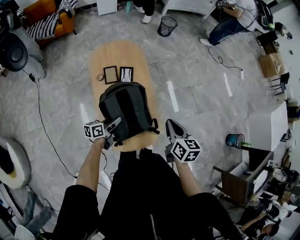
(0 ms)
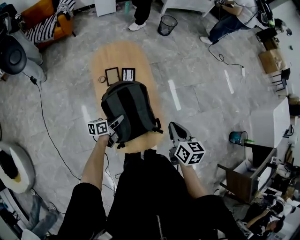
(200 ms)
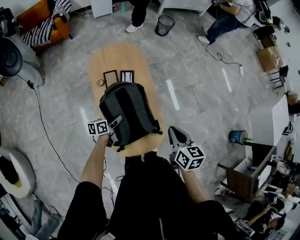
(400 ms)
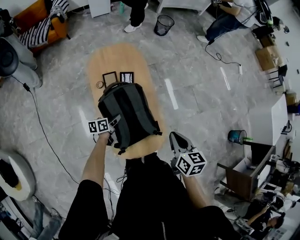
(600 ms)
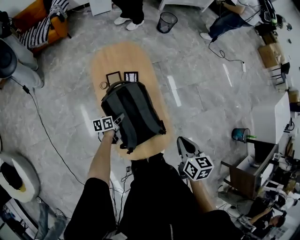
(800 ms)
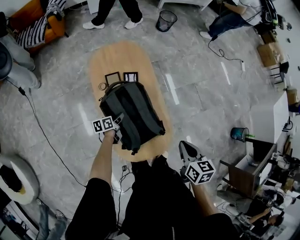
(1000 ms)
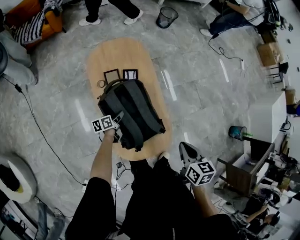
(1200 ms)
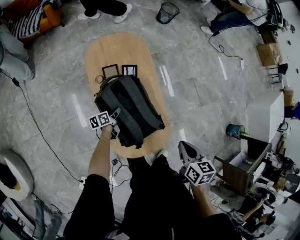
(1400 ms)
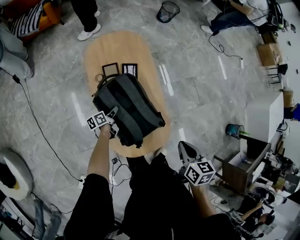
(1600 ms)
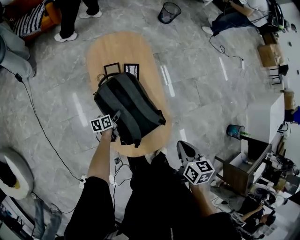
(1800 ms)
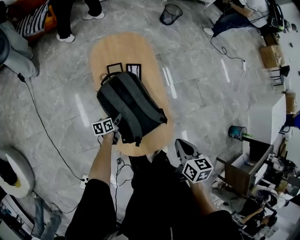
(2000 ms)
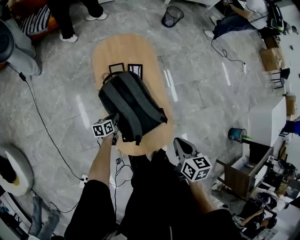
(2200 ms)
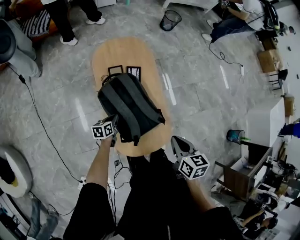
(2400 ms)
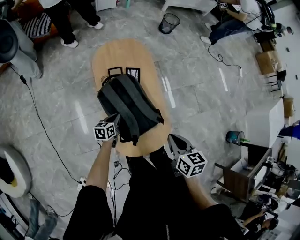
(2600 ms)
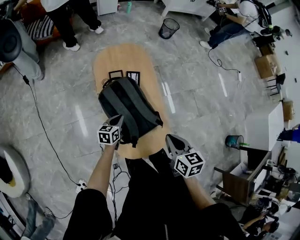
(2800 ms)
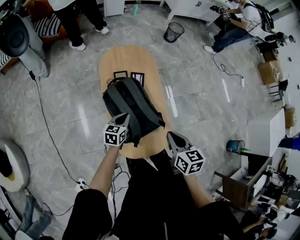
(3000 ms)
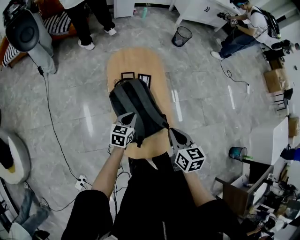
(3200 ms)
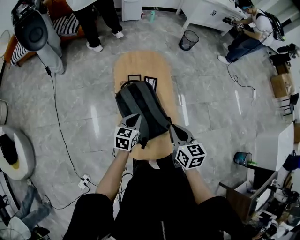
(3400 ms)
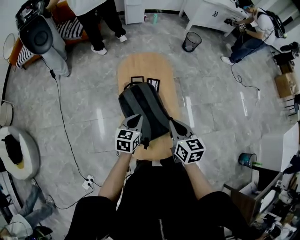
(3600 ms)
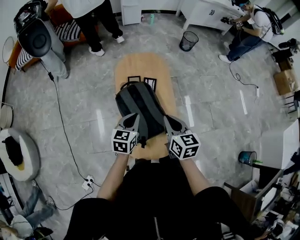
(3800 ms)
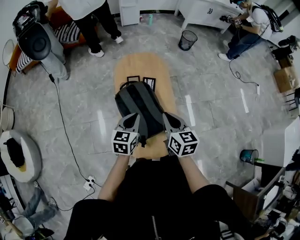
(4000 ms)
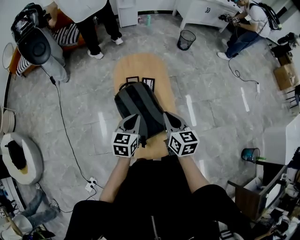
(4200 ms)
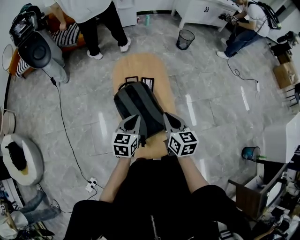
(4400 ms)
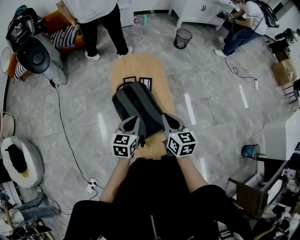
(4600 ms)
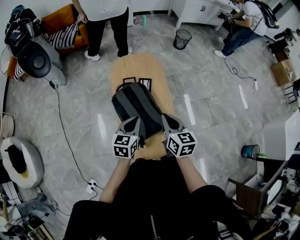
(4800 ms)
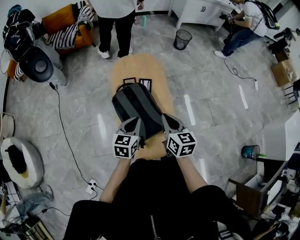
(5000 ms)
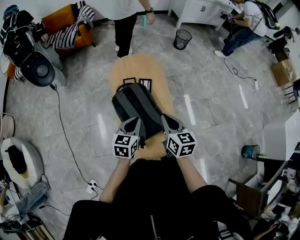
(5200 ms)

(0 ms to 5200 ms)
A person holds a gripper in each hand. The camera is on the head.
0 ms - 1800 ms: The left gripper moves downward, to the left and forward, about 20 cm, and changes its angle by approximately 20 degrees. The right gripper changes place by about 5 cm.
1800 ms - 3400 ms: The right gripper is displaced to the left by roughly 10 cm, and swivels some 20 degrees. The left gripper heads upward, covering roughly 25 cm, swivels some 40 degrees, and closes its fingers.
3400 ms - 5200 ms: The left gripper moves upward, about 5 cm.

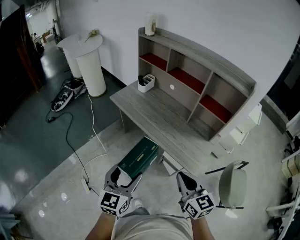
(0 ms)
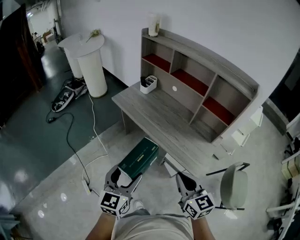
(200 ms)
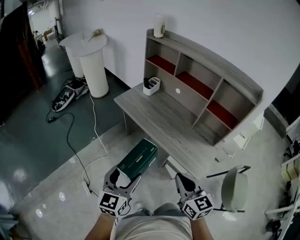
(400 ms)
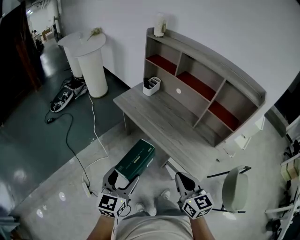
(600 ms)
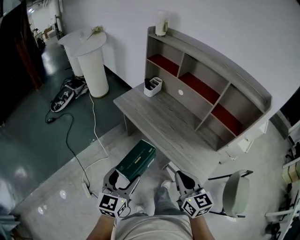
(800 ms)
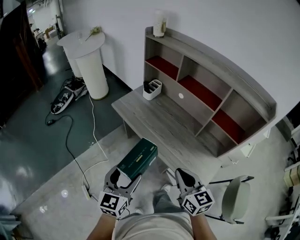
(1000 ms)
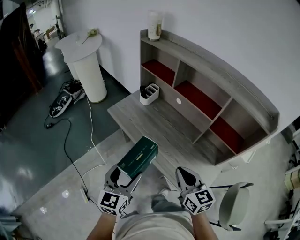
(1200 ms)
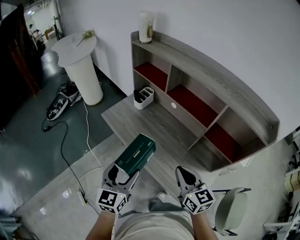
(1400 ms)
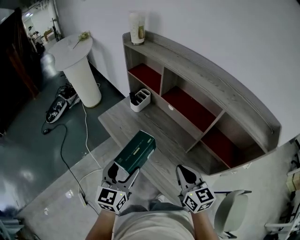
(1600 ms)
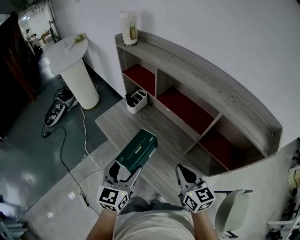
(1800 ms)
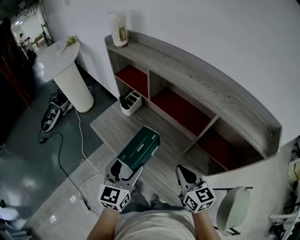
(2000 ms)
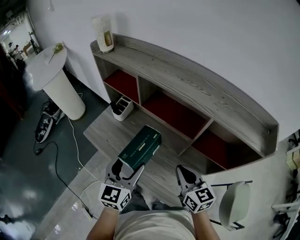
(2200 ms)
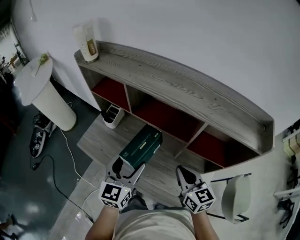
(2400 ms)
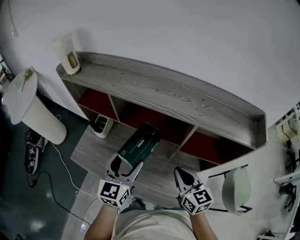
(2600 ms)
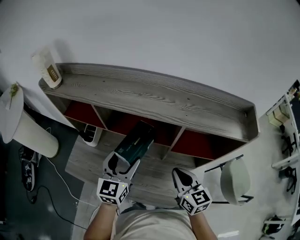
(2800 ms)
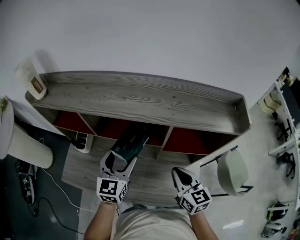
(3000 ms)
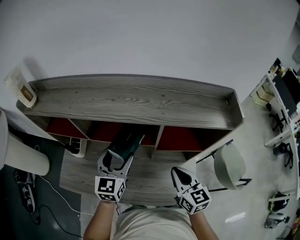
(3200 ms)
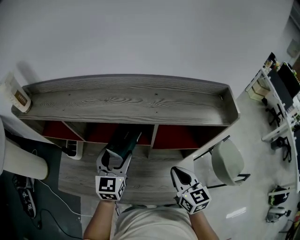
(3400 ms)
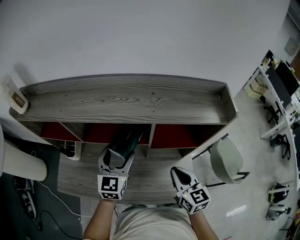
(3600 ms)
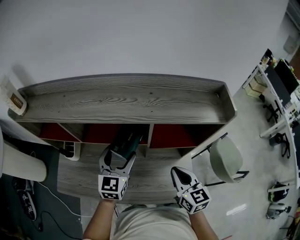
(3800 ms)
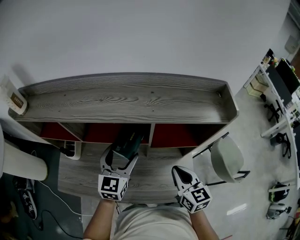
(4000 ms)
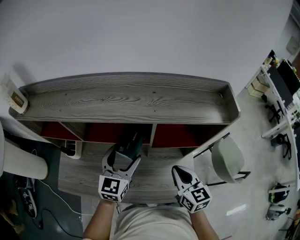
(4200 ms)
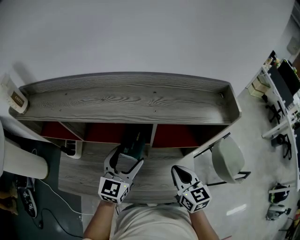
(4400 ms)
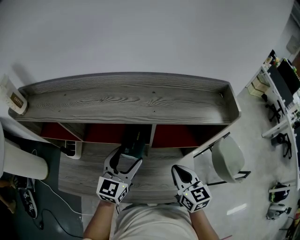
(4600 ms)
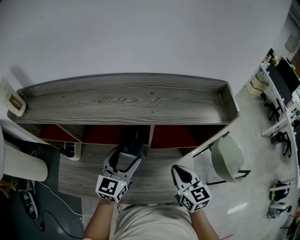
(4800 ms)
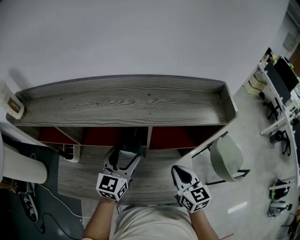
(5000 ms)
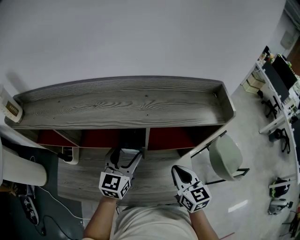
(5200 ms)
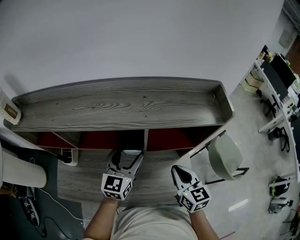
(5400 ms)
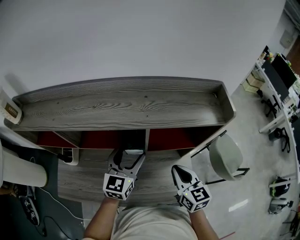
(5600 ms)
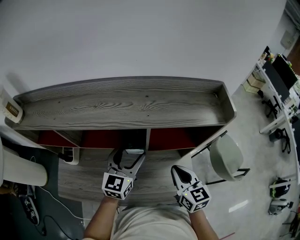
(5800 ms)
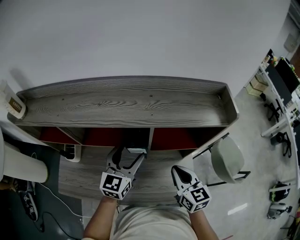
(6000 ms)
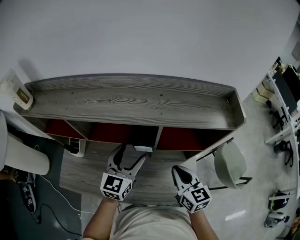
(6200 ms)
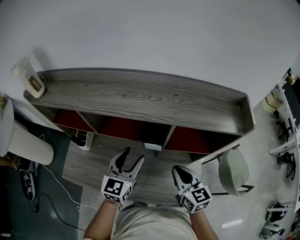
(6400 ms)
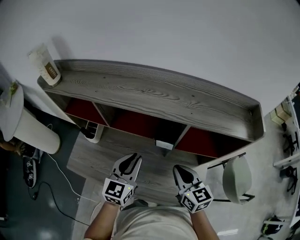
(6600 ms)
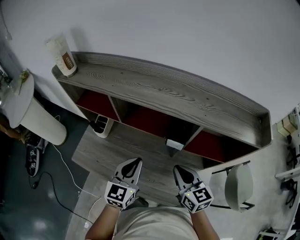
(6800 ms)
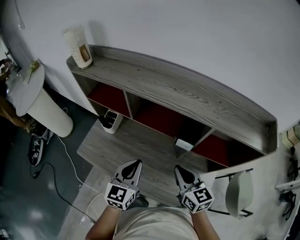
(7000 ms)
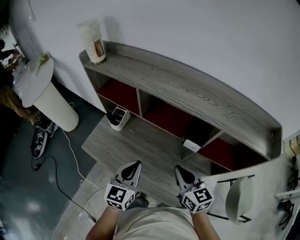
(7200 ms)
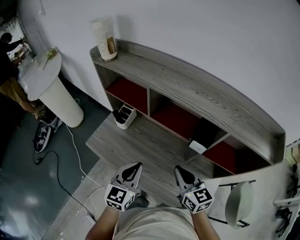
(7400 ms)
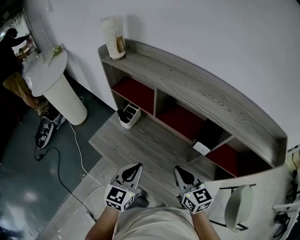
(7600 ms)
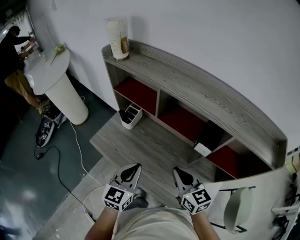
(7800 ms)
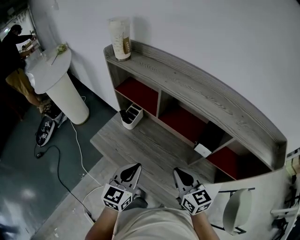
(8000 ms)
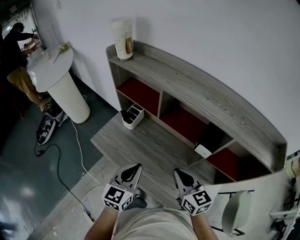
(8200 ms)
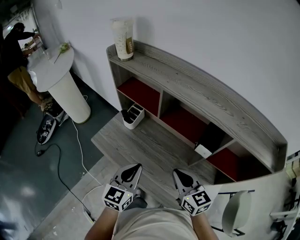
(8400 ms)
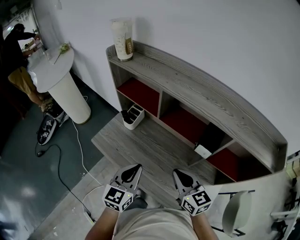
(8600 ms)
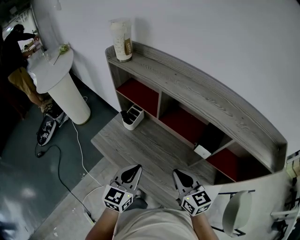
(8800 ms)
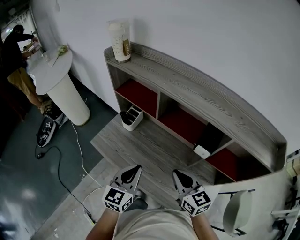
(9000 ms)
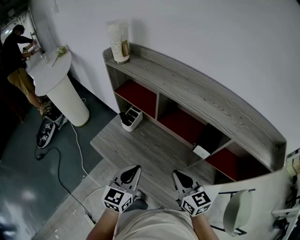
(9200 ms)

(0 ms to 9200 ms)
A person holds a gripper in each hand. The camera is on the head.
0 ms - 1600 ms: Both grippers travel together forward, about 30 cm.
1600 ms - 3000 ms: The left gripper moves roughly 30 cm, and turns by approximately 30 degrees, while the right gripper moves roughly 15 cm, and changes its angle by some 40 degrees.
3000 ms - 4600 ms: The left gripper goes some 5 cm to the right.
4600 ms - 6200 ms: There are only small adjustments of the grippers.
6200 ms - 7600 ms: The right gripper changes place by roughly 20 cm, and turns by roughly 30 degrees. The left gripper ends up some 25 cm from where it was, turns by some 30 degrees, and closes up.
7600 ms - 9200 ms: The grippers move only a little.

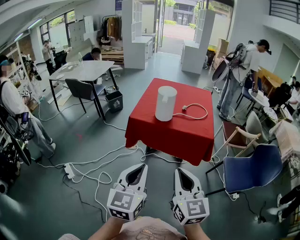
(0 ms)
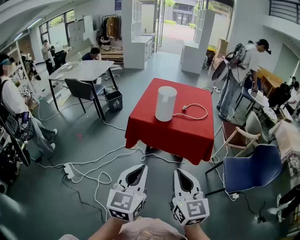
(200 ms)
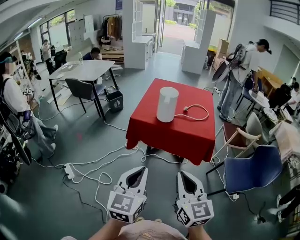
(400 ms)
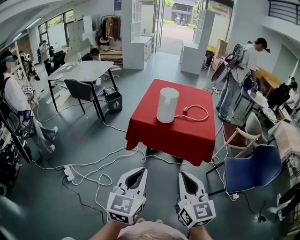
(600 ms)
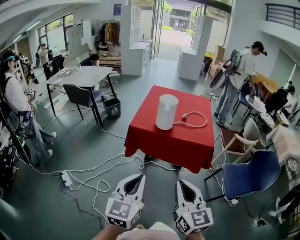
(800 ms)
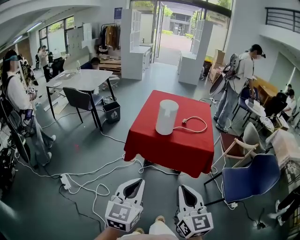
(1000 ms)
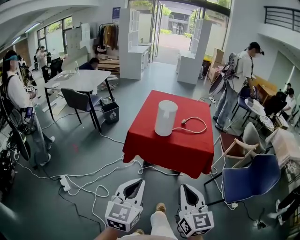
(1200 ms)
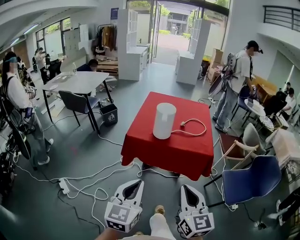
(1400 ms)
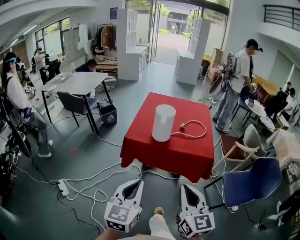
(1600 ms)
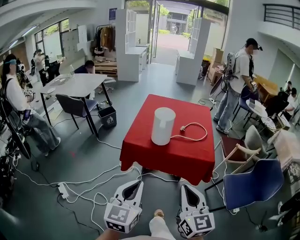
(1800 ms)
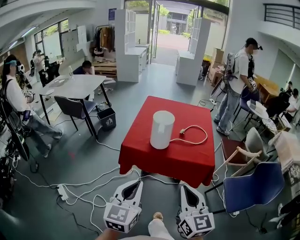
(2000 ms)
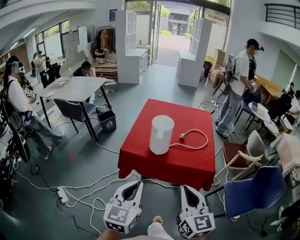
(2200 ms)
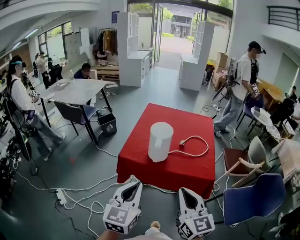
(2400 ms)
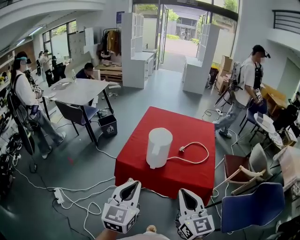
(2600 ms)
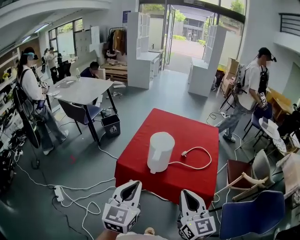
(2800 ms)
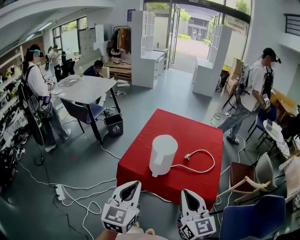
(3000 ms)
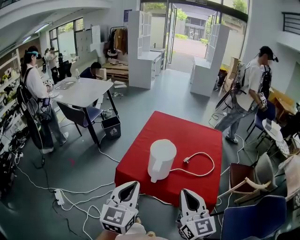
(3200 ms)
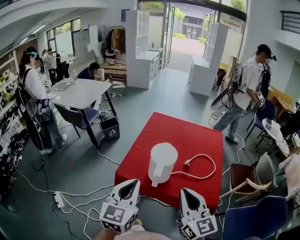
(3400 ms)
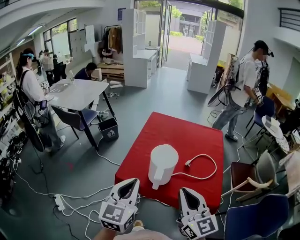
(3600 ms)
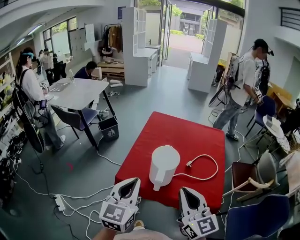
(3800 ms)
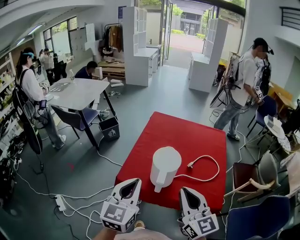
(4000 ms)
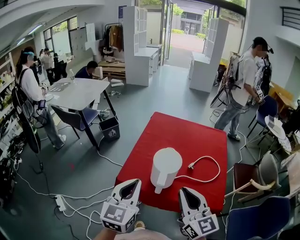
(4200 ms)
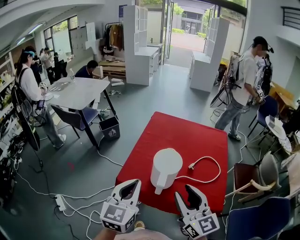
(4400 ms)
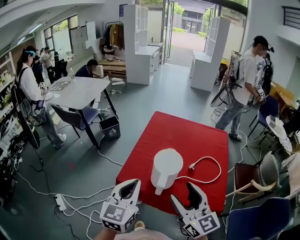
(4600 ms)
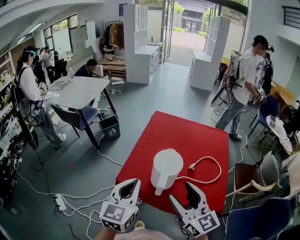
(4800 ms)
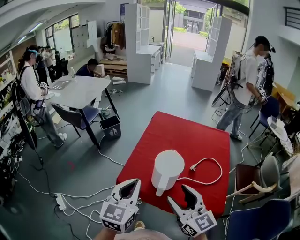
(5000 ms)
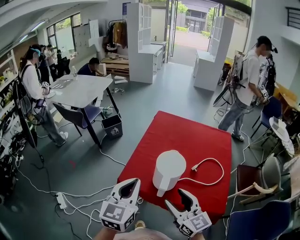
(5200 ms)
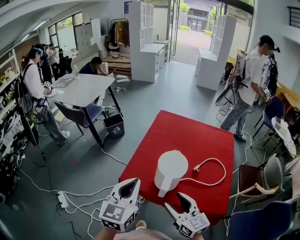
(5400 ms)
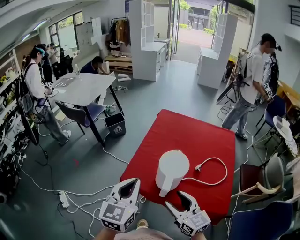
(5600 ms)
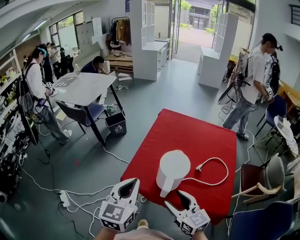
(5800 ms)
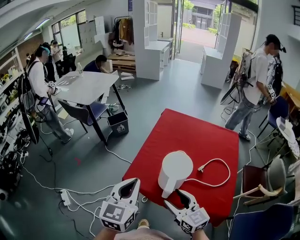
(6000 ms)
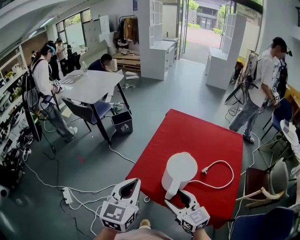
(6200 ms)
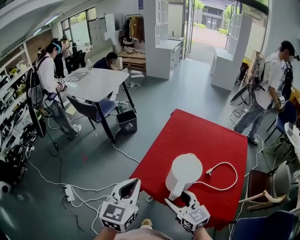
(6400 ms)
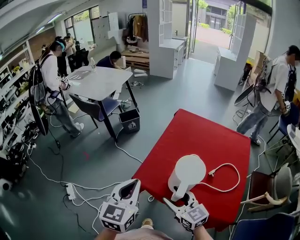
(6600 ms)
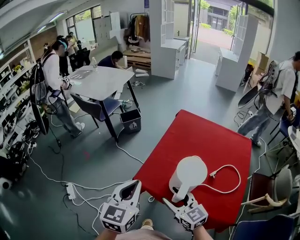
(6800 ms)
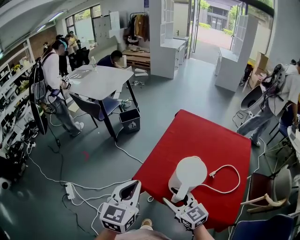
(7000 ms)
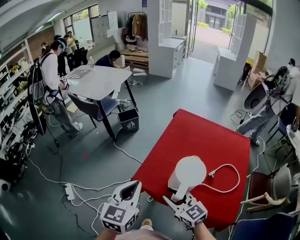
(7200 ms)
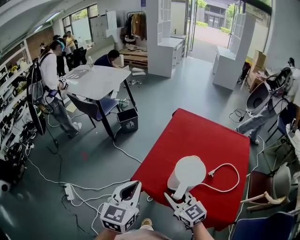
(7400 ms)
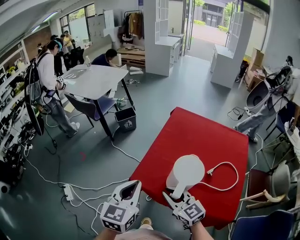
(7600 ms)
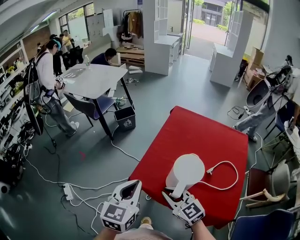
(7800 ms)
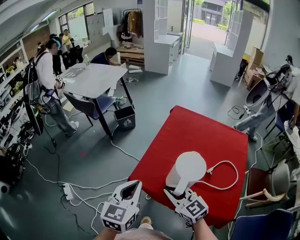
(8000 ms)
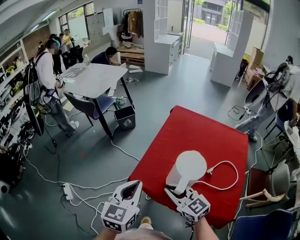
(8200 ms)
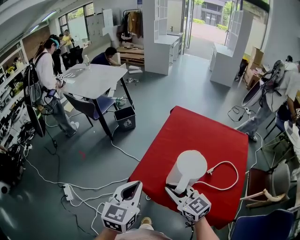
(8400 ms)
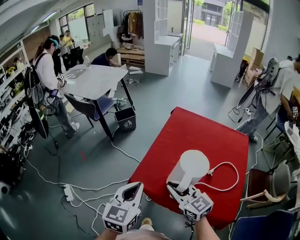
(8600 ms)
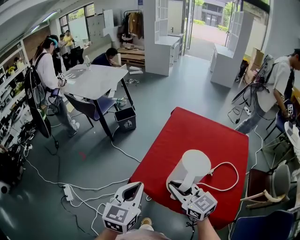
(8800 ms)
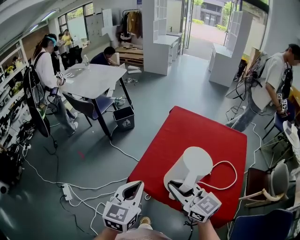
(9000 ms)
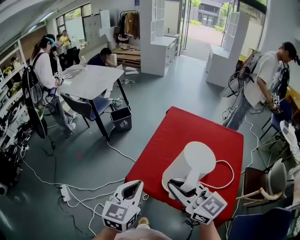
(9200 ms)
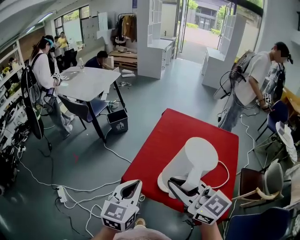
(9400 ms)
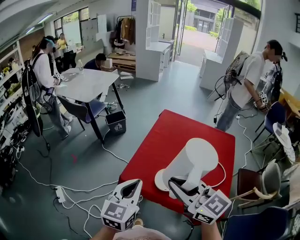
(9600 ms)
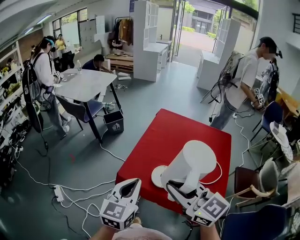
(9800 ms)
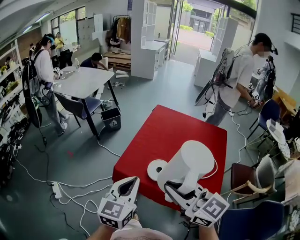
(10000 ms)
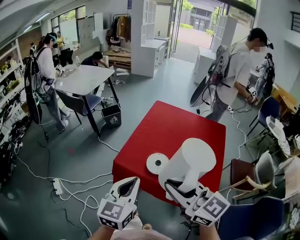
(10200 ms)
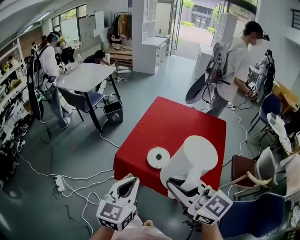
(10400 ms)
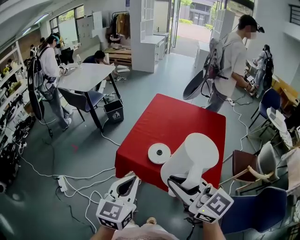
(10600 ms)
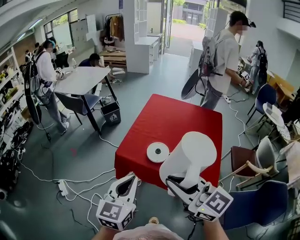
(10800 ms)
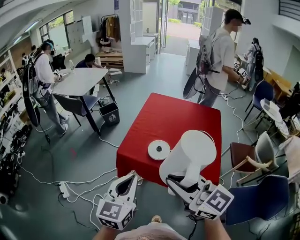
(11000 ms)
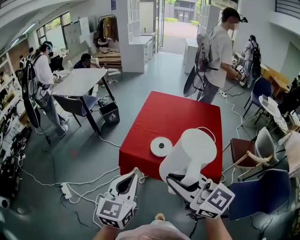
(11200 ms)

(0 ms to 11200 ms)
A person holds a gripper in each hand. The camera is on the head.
0 ms - 1600 ms: Both grippers travel together forward, roughly 10 cm.
1600 ms - 3200 ms: The two grippers go roughly 25 cm forward.
3200 ms - 4800 ms: The two grippers go about 10 cm forward. The right gripper opens its fingers.
4800 ms - 6400 ms: The left gripper is displaced to the left by some 5 cm, while the right gripper goes some 15 cm downward and to the left, and turns by roughly 20 degrees.
6400 ms - 8000 ms: The right gripper closes.
8000 ms - 9600 ms: The left gripper changes place by roughly 5 cm. The right gripper travels upward by roughly 15 cm.
9600 ms - 11200 ms: The grippers both shift backward by roughly 20 cm.
